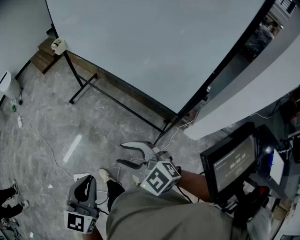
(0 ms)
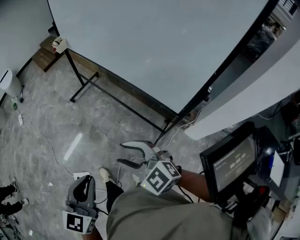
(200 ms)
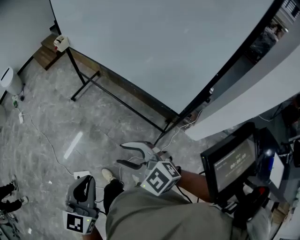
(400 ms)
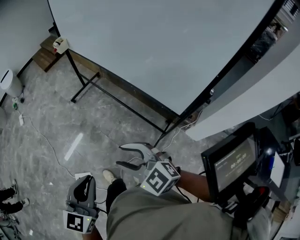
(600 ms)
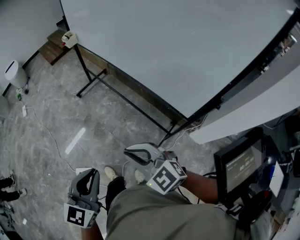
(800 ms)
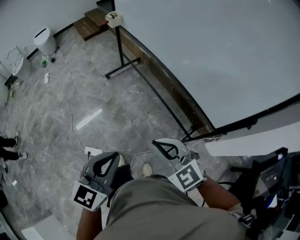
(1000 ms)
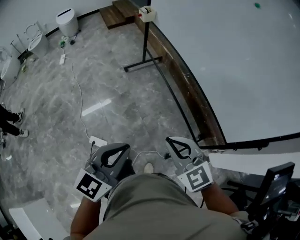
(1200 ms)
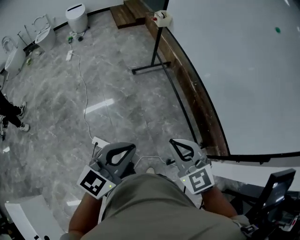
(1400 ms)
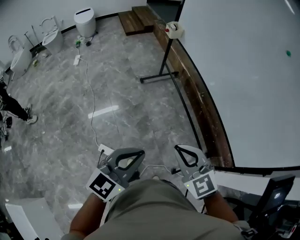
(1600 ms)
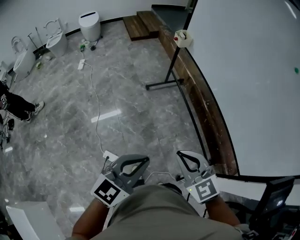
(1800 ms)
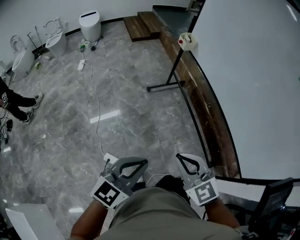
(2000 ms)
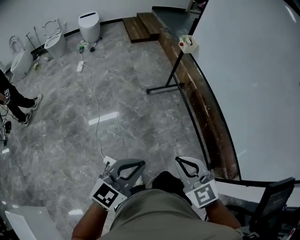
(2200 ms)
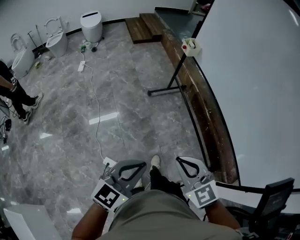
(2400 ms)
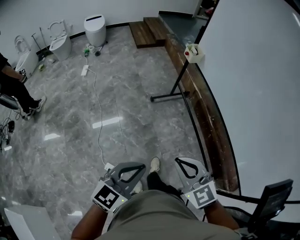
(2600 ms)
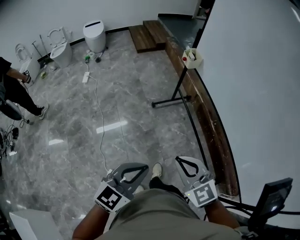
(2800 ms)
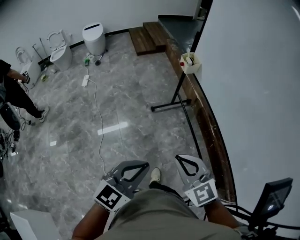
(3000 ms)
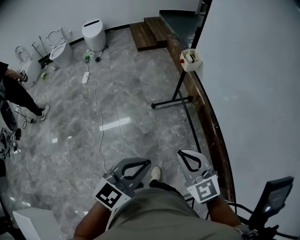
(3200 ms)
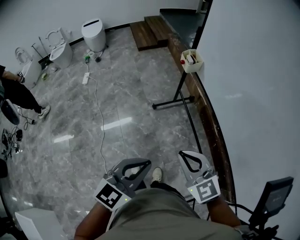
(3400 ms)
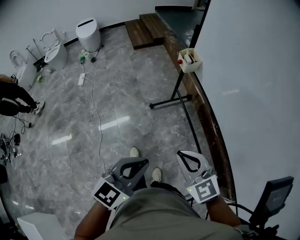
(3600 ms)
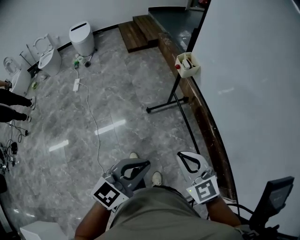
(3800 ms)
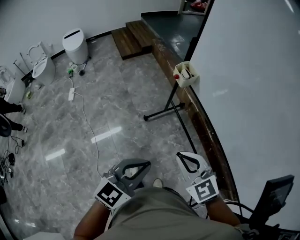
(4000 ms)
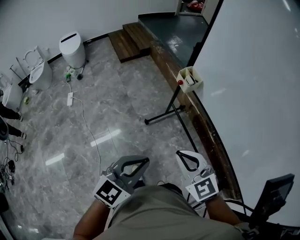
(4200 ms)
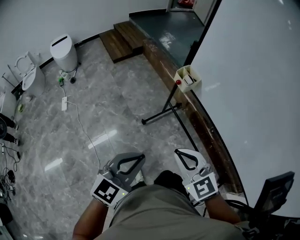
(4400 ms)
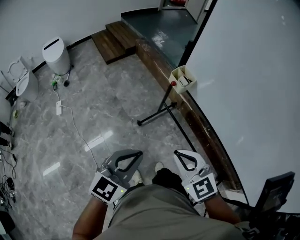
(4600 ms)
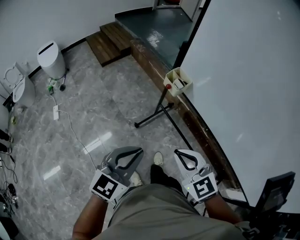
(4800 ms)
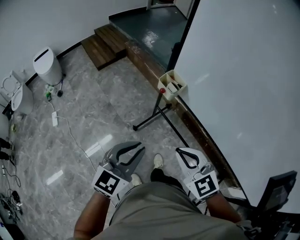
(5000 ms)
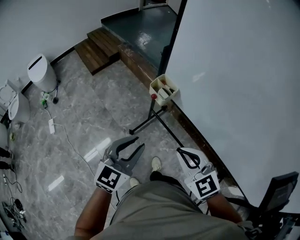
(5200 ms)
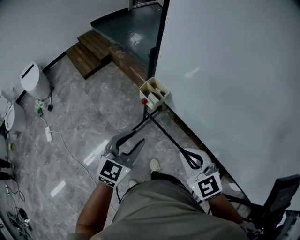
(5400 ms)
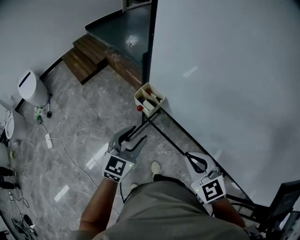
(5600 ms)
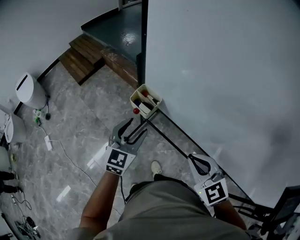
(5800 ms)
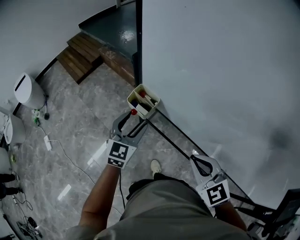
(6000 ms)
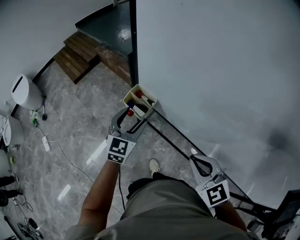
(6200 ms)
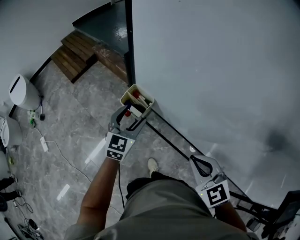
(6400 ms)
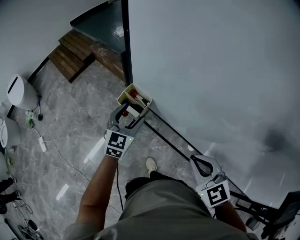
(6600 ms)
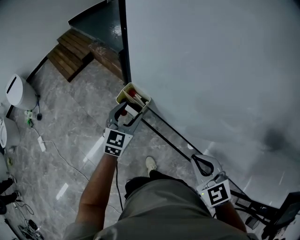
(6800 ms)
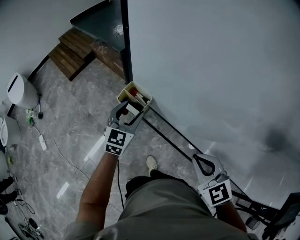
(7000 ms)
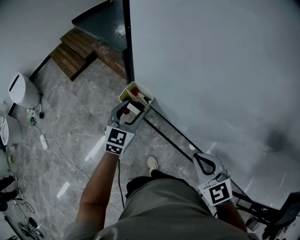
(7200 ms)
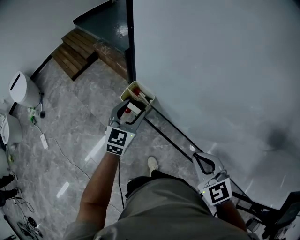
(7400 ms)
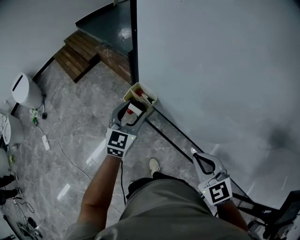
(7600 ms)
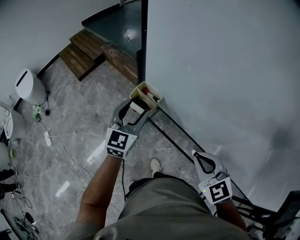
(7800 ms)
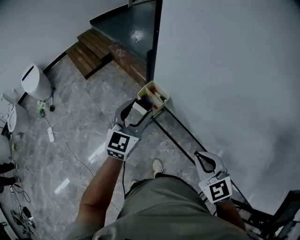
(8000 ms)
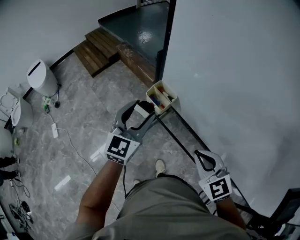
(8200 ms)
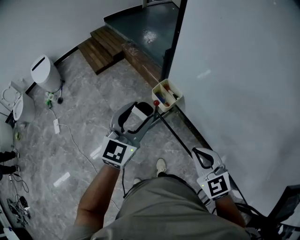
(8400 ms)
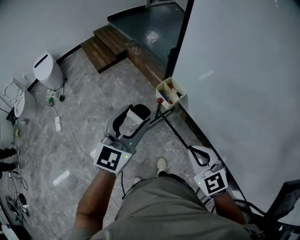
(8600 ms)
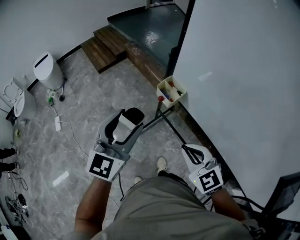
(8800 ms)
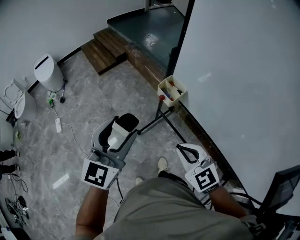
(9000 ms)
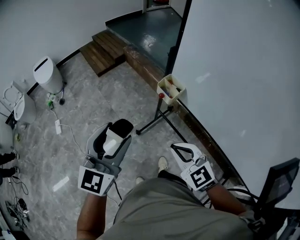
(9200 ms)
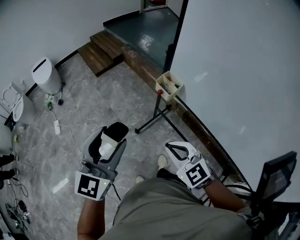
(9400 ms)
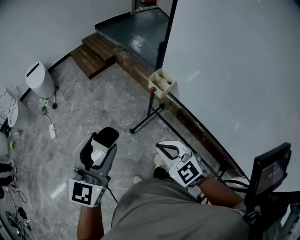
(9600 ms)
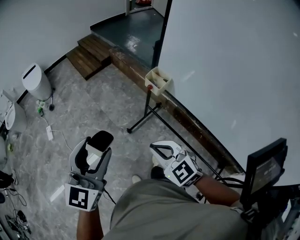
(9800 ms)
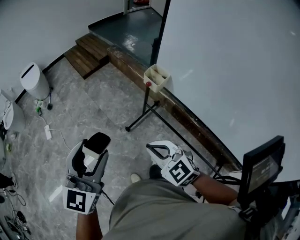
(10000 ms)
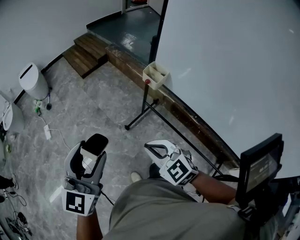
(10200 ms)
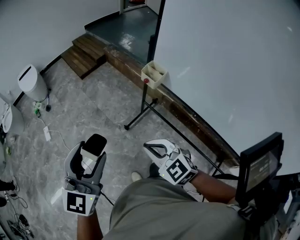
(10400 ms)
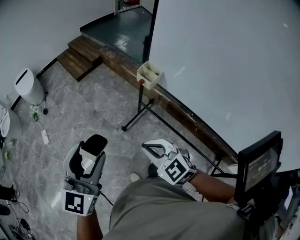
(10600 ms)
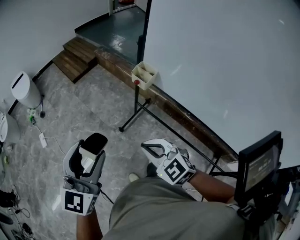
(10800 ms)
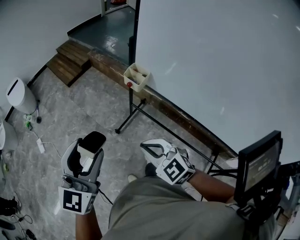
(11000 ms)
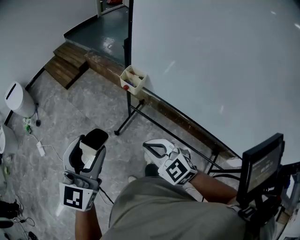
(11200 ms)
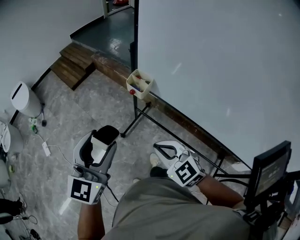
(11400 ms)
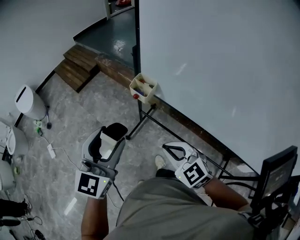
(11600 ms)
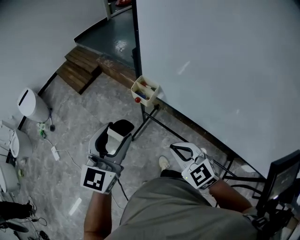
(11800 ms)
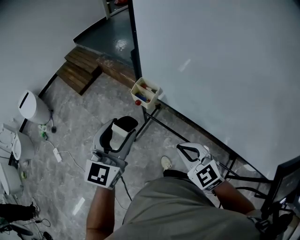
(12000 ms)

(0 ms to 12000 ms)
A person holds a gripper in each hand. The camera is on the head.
0 ms - 1600 ms: The grippers both shift to the left and forward by roughly 20 cm. The right gripper closes up.
1600 ms - 3000 ms: The grippers both shift forward by some 25 cm.
3000 ms - 4400 ms: Both grippers move forward and to the left, some 25 cm.
4400 ms - 6000 ms: The right gripper heads to the right and forward, covering some 25 cm, and changes its angle by approximately 20 degrees. The left gripper is displaced forward by about 40 cm, and opens its fingers.
7600 ms - 9000 ms: The left gripper moves backward, to the left and upward, about 30 cm, while the right gripper goes approximately 15 cm to the left.
9000 ms - 10400 ms: The right gripper moves to the left and backward, about 15 cm. Meanwhile the left gripper is displaced backward and to the left by about 20 cm.
10400 ms - 12000 ms: The left gripper goes about 25 cm forward and to the right; the right gripper travels to the right and forward by approximately 20 cm.

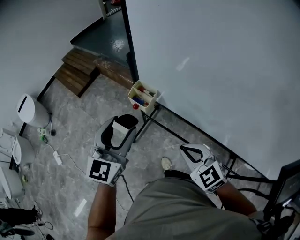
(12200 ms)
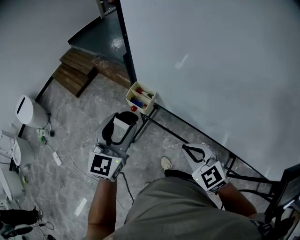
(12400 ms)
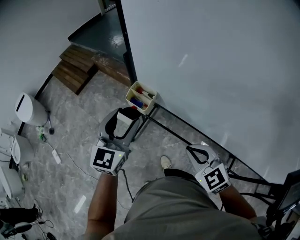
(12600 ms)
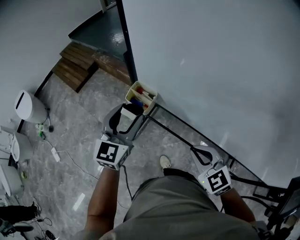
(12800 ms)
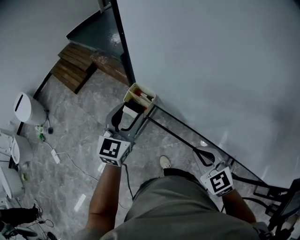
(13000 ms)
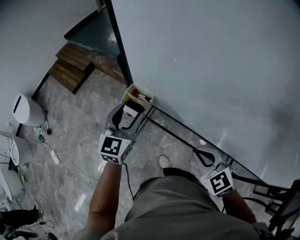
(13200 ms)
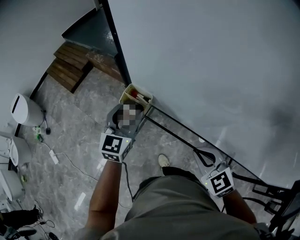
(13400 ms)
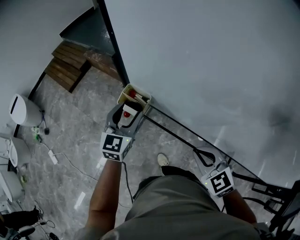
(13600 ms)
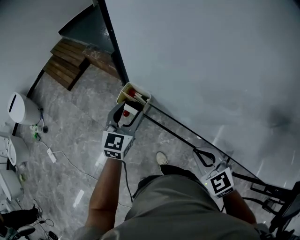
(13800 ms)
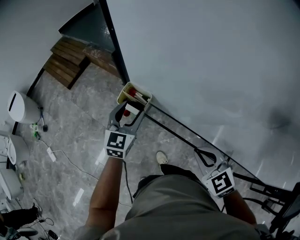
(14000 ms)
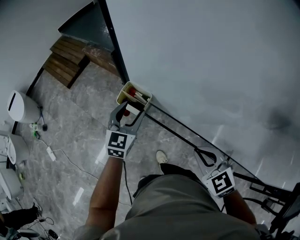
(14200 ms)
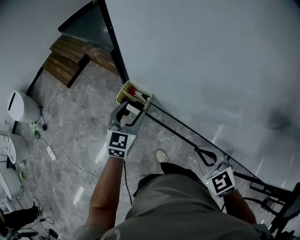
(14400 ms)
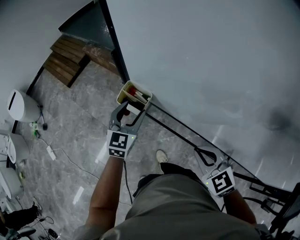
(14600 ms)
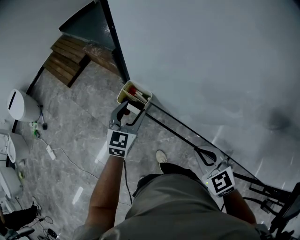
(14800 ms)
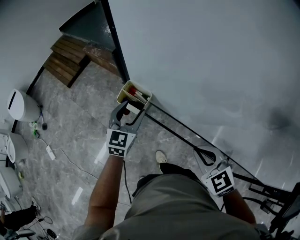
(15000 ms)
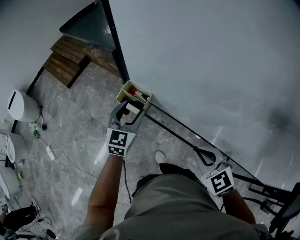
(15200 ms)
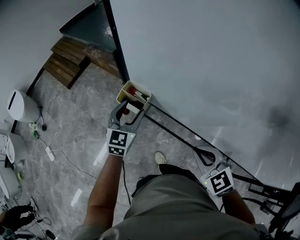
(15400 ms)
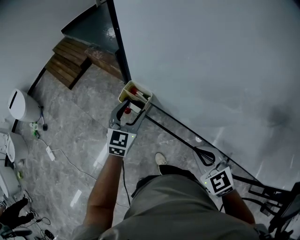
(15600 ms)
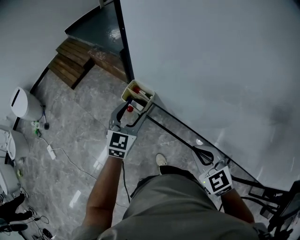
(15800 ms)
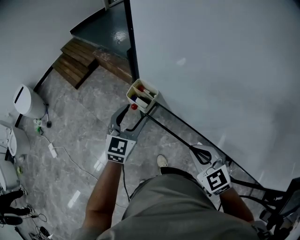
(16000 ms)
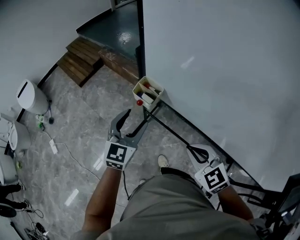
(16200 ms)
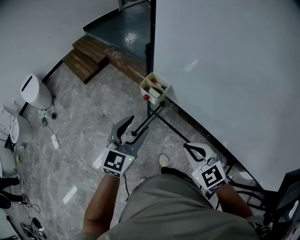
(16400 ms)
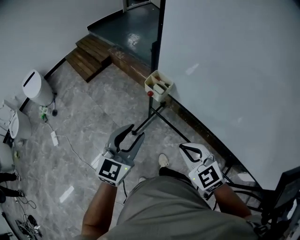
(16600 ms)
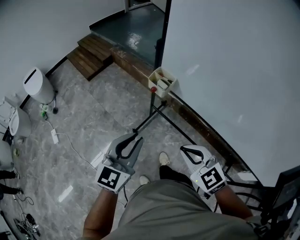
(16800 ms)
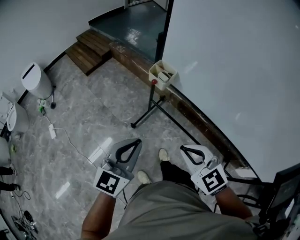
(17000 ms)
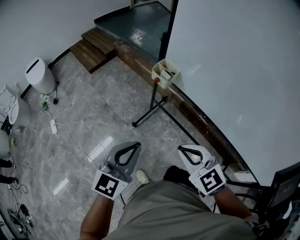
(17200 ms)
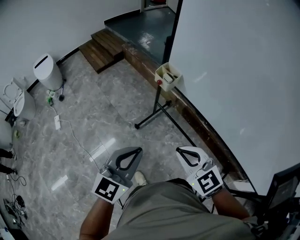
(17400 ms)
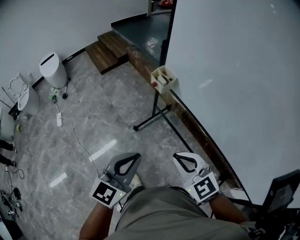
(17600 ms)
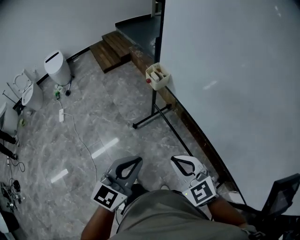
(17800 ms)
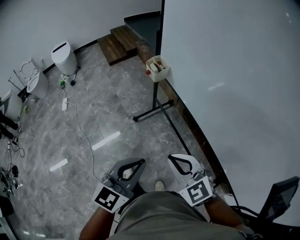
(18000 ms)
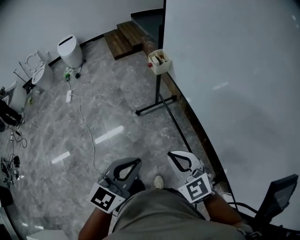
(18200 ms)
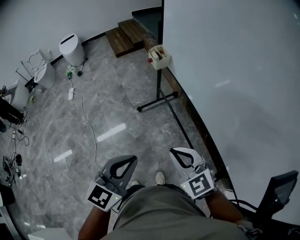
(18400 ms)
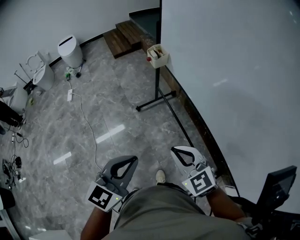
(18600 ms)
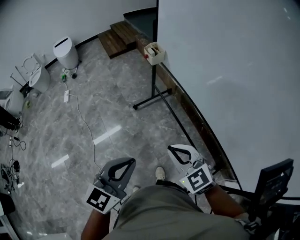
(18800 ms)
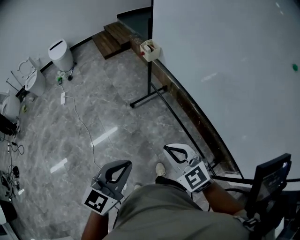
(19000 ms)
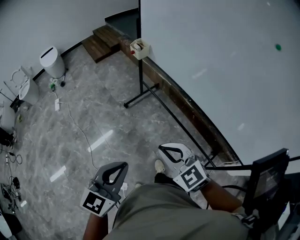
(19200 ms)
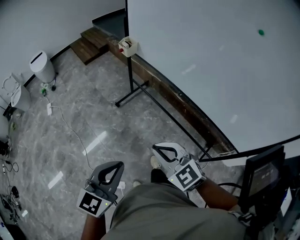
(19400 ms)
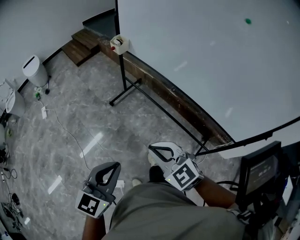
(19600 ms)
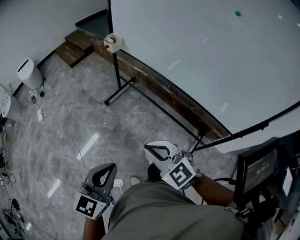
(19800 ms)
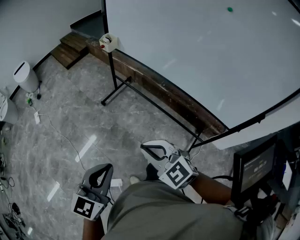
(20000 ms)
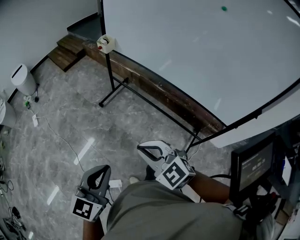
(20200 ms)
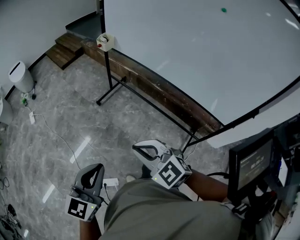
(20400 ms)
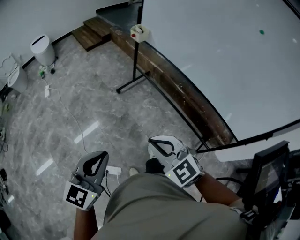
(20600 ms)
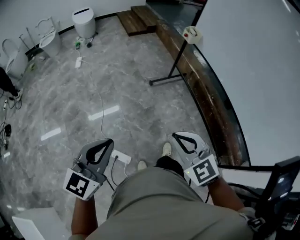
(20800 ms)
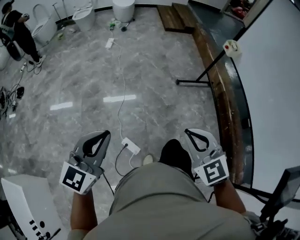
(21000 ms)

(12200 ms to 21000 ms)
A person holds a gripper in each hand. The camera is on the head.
12200 ms - 13600 ms: The right gripper is displaced to the right by some 10 cm; the left gripper is displaced forward, downward and to the right by approximately 20 cm.
13600 ms - 15200 ms: The grippers make only small movements.
15200 ms - 16600 ms: The right gripper shifts roughly 15 cm to the left and backward, while the left gripper travels backward and upward by approximately 25 cm, and closes.
16600 ms - 18000 ms: The right gripper is displaced backward and to the right by roughly 20 cm; the left gripper moves backward and to the right, some 30 cm, and closes up.
18000 ms - 19600 ms: Both grippers travel together backward, about 30 cm.
19600 ms - 21000 ms: The left gripper changes place by some 35 cm, and changes its angle by some 40 degrees. The right gripper moves roughly 20 cm, and rotates approximately 20 degrees.

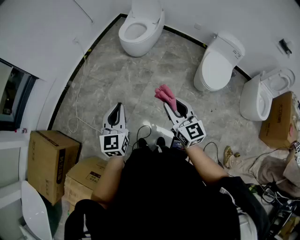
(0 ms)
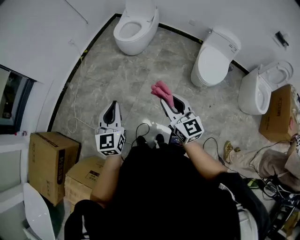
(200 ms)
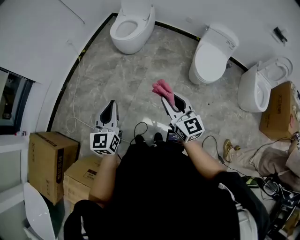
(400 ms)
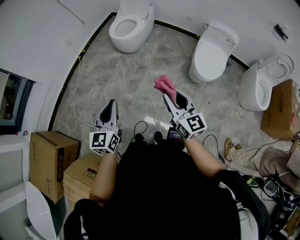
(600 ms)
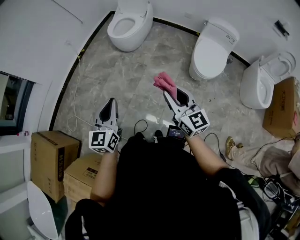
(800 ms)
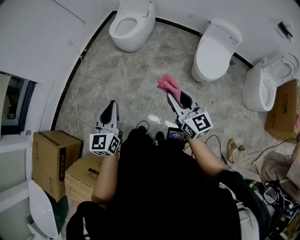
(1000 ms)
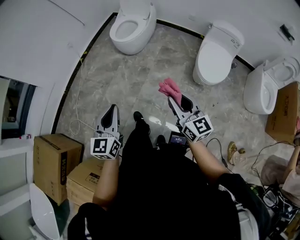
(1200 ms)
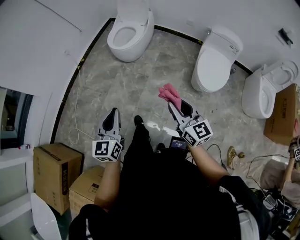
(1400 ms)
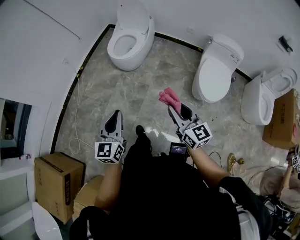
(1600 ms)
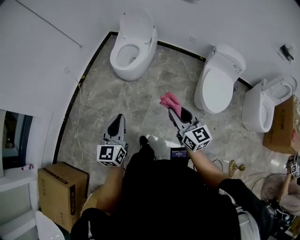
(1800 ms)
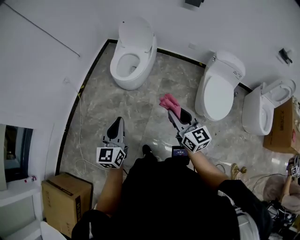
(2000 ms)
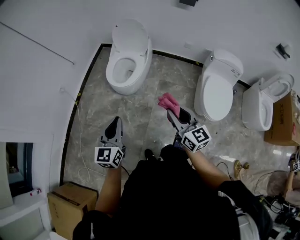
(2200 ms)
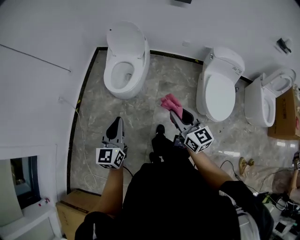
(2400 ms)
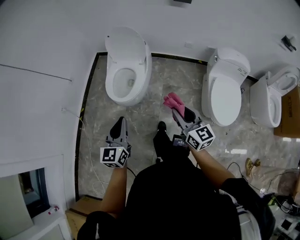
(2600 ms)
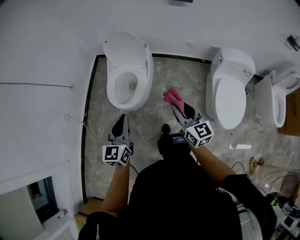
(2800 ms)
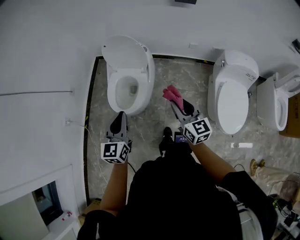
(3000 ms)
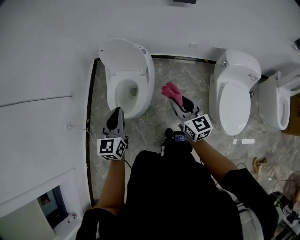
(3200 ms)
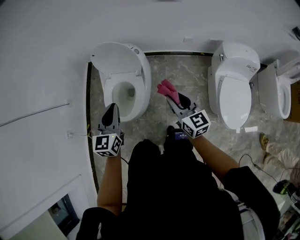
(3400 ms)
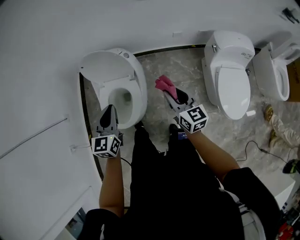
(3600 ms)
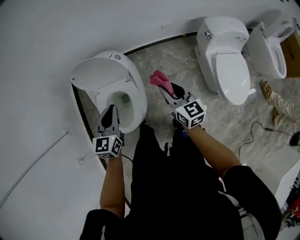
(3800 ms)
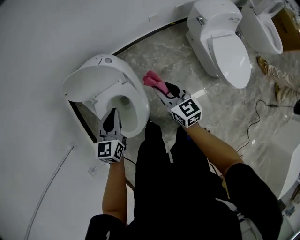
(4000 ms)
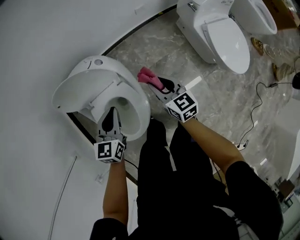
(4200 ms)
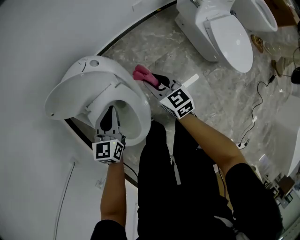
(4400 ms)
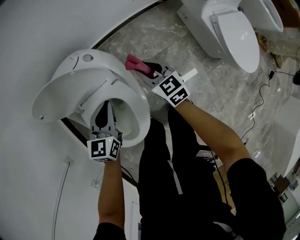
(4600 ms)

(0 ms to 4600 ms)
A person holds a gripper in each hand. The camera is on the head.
0 ms - 1600 ms: Both grippers travel together forward and to the right, roughly 15 cm.
1600 ms - 3000 ms: The pair of grippers is taken forward, about 50 cm.
3000 ms - 4600 ms: The left gripper ends up approximately 40 cm from where it was, and changes its angle by approximately 40 degrees. The right gripper heads downward, covering about 30 cm, and rotates about 30 degrees.
